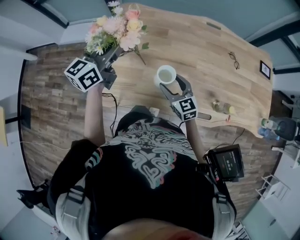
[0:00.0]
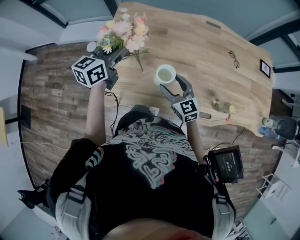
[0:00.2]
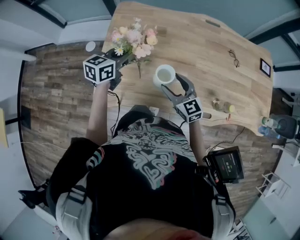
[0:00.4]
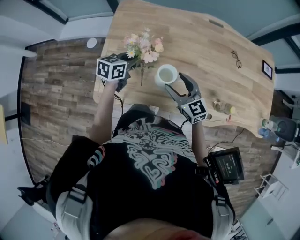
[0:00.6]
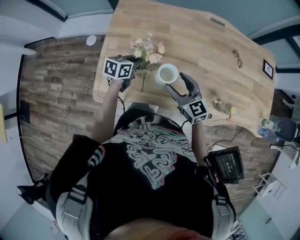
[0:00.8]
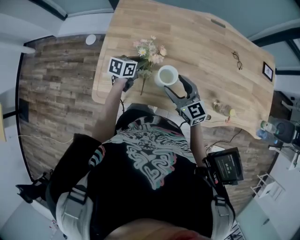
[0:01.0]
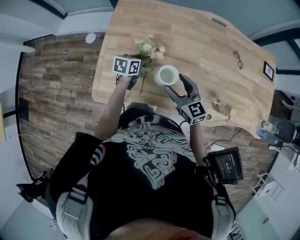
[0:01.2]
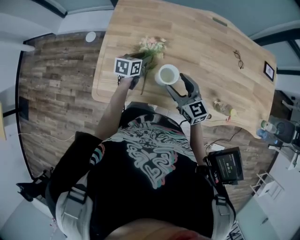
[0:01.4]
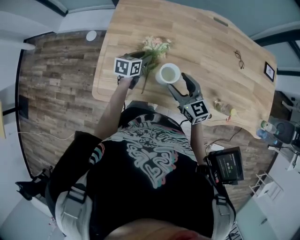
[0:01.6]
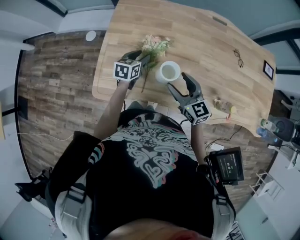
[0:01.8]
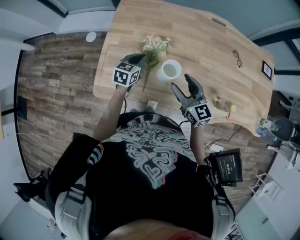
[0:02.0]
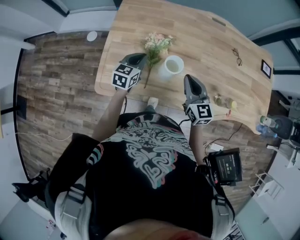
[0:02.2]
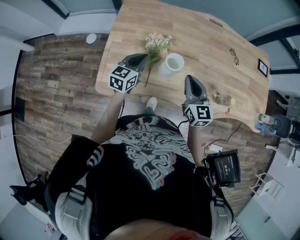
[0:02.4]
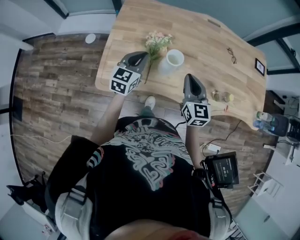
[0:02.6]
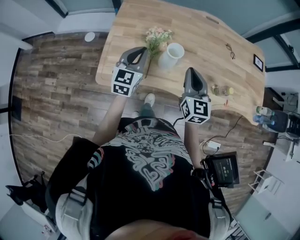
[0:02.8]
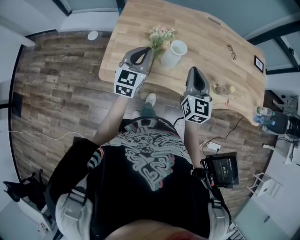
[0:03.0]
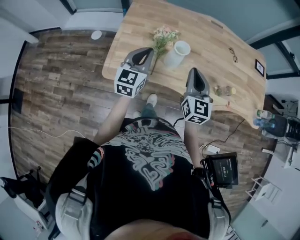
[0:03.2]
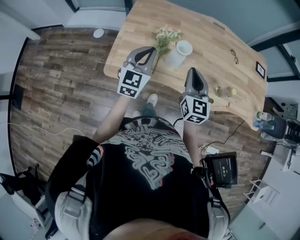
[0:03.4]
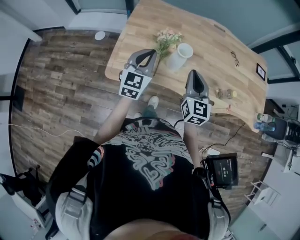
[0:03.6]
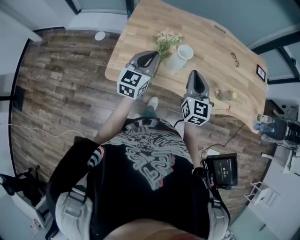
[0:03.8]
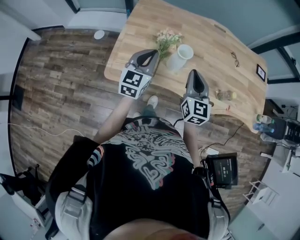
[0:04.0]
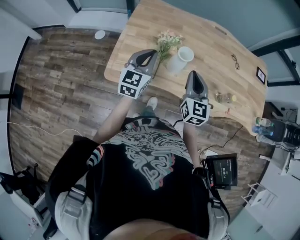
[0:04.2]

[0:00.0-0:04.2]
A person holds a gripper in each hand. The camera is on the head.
0:00.0 to 0:01.4: The left gripper goes about 25 cm downward, and angles its fingers downward, by about 40 degrees.
0:01.4 to 0:02.8: The right gripper shifts approximately 15 cm upward and backward, changes its angle by roughly 30 degrees, and closes up, while the left gripper goes about 25 cm upward and backward, and turns by some 40 degrees.

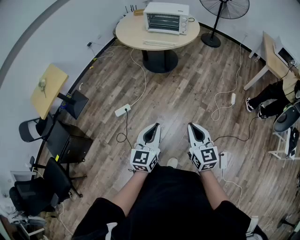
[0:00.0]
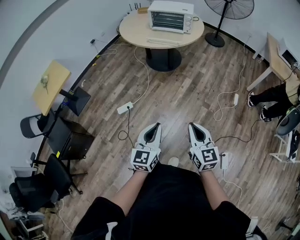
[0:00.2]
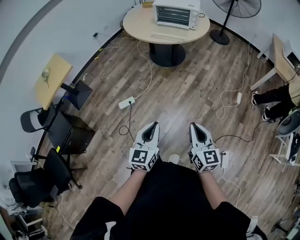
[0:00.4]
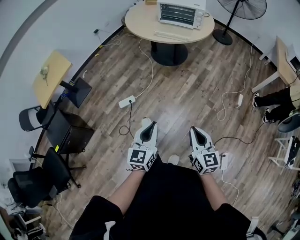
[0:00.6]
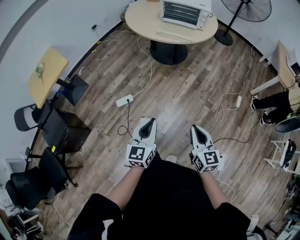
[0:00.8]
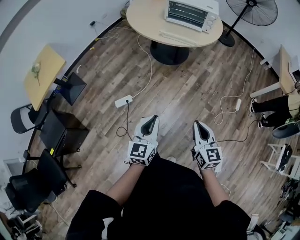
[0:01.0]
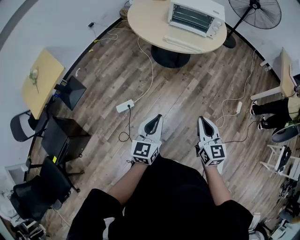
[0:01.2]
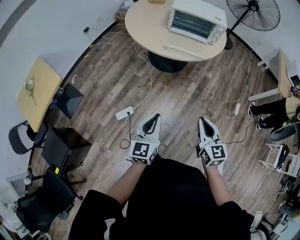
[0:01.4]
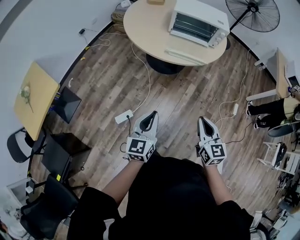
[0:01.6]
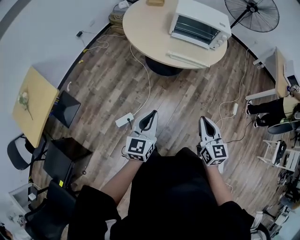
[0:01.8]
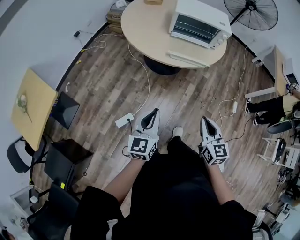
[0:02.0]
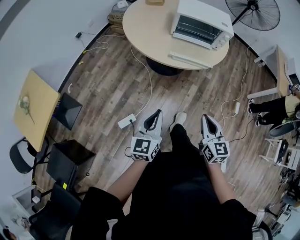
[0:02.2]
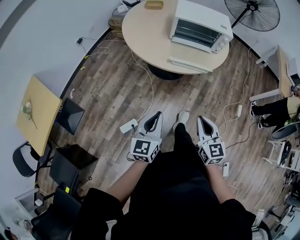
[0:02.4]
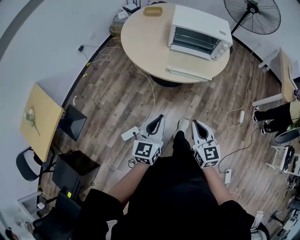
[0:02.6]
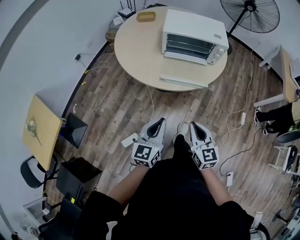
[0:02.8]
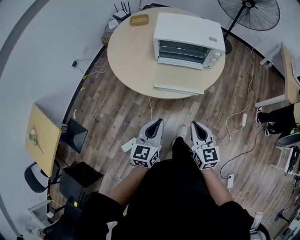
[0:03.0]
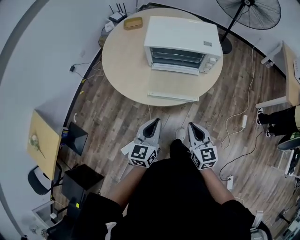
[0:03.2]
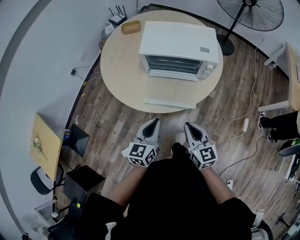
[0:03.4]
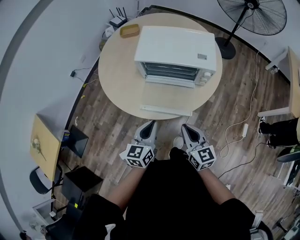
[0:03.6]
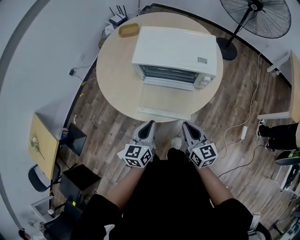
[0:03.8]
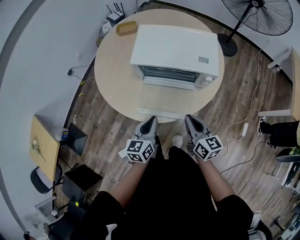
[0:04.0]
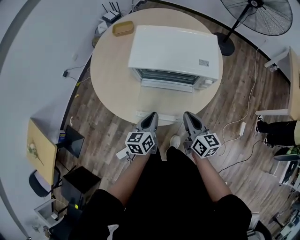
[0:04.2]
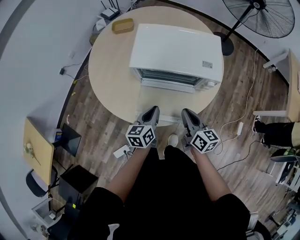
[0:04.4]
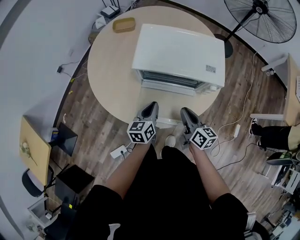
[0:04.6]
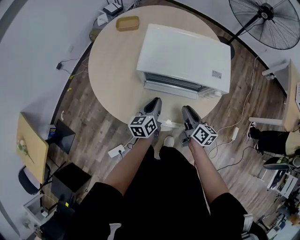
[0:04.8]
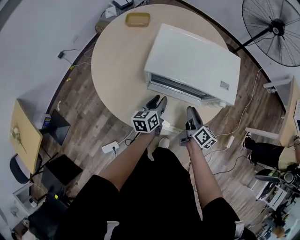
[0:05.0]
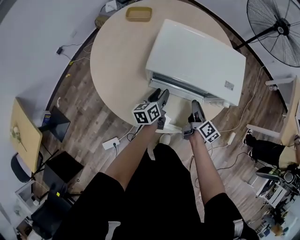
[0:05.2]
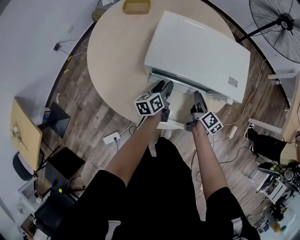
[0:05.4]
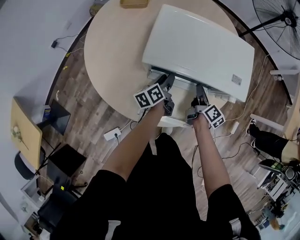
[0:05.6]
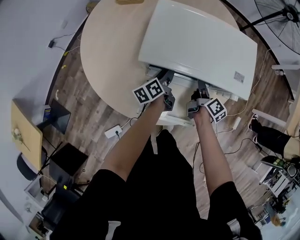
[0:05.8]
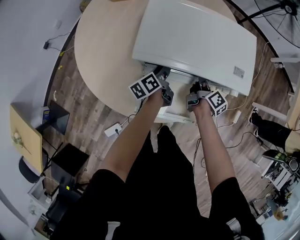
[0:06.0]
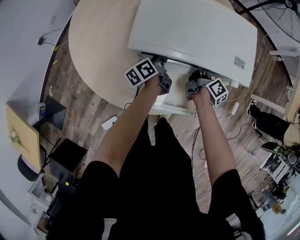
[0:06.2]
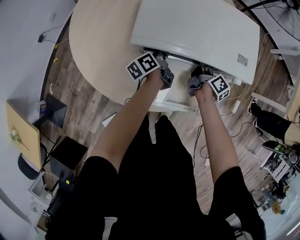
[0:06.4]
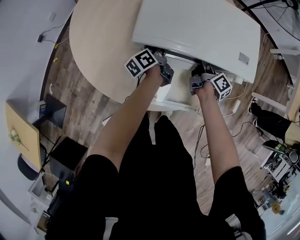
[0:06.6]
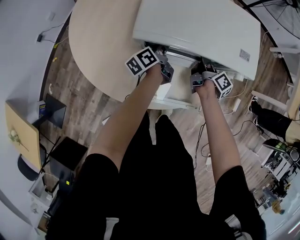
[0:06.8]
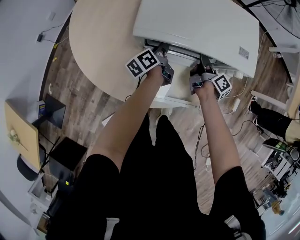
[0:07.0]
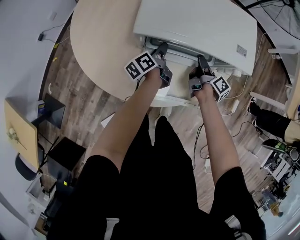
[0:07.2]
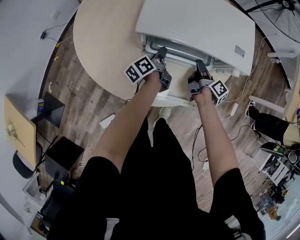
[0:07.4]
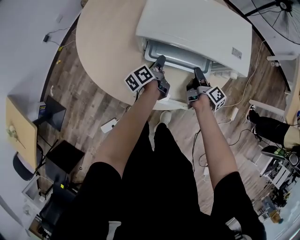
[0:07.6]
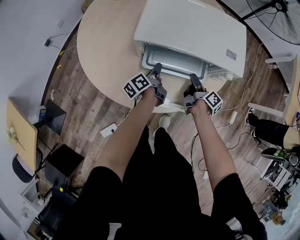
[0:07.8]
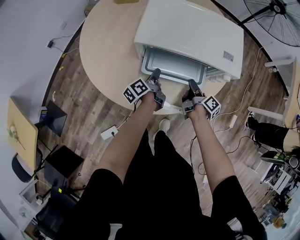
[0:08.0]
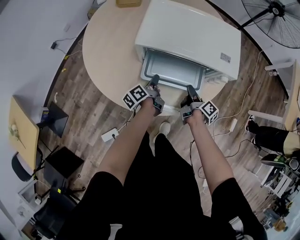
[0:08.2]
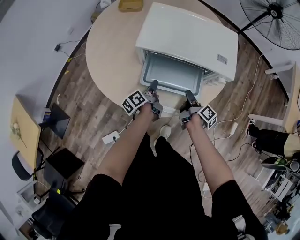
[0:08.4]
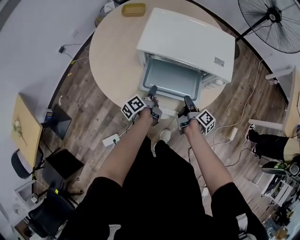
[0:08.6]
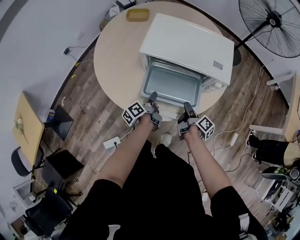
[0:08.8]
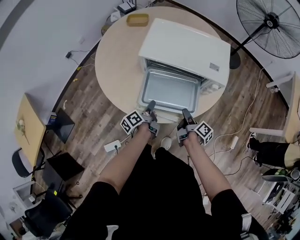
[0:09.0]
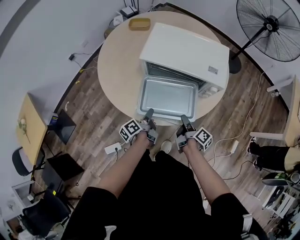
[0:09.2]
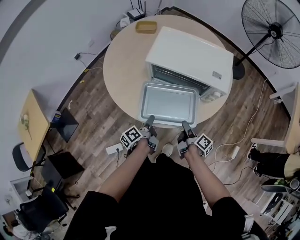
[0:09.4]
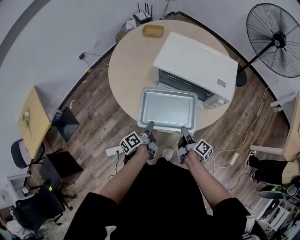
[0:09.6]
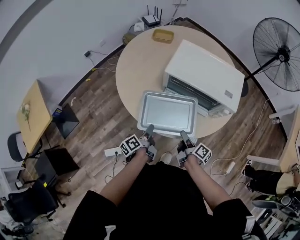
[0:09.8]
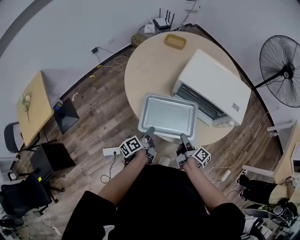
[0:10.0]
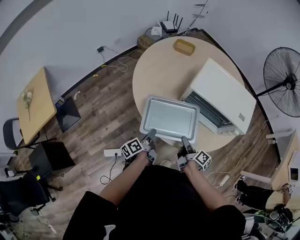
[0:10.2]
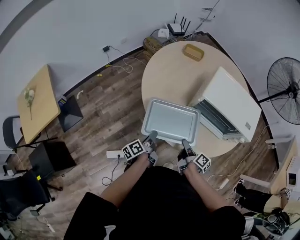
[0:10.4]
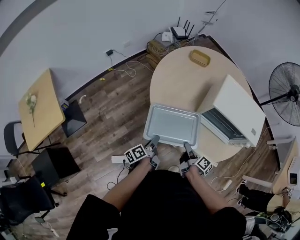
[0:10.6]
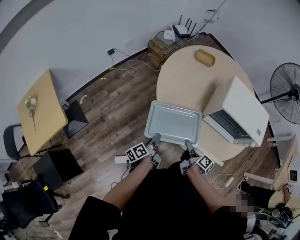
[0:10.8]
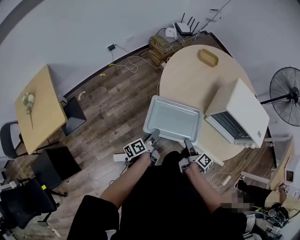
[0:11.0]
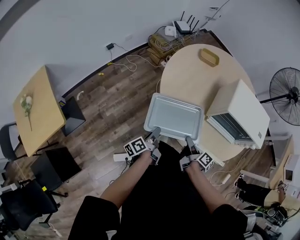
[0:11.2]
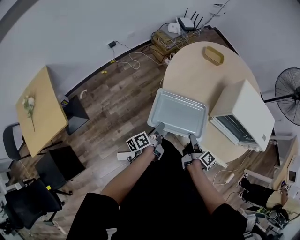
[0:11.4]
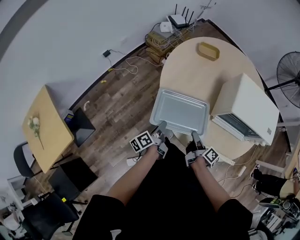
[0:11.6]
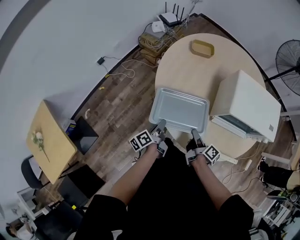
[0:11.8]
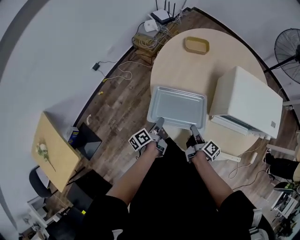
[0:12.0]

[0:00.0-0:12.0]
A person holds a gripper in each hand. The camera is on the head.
0:00.0 to 0:01.6: The two grippers travel together, forward and to the left, roughly 40 cm.
0:01.6 to 0:03.0: The grippers both shift forward by about 25 cm.
0:03.0 to 0:04.4: Both grippers travel together forward, roughly 30 cm. The right gripper rotates about 30 degrees, while the left gripper turns by approximately 20 degrees.
0:04.4 to 0:06.0: The grippers both shift forward and downward by roughly 25 cm. The left gripper changes its angle by about 40 degrees, and opens up; the right gripper rotates about 40 degrees, and opens.
0:06.0 to 0:07.6: The grippers both shift backward by about 5 cm.
0:07.6 to 0:09.0: The two grippers go roughly 15 cm backward.
0:09.0 to 0:10.4: Both grippers move to the left, approximately 25 cm. The right gripper rotates some 20 degrees.
0:10.4 to 0:12.0: The two grippers go approximately 25 cm forward and to the left.

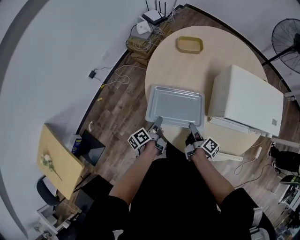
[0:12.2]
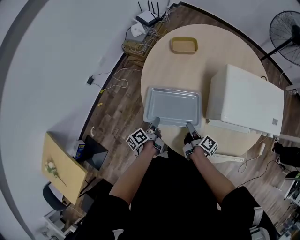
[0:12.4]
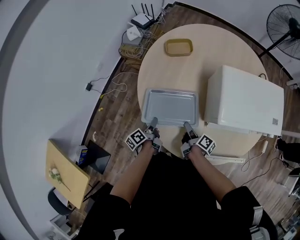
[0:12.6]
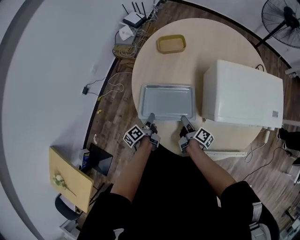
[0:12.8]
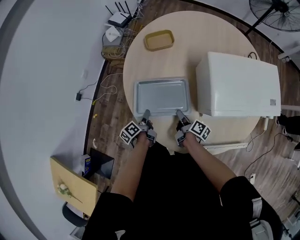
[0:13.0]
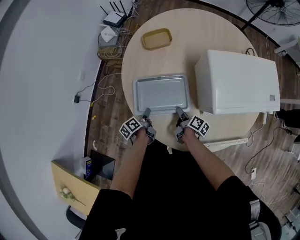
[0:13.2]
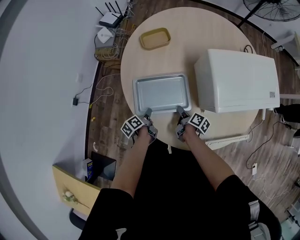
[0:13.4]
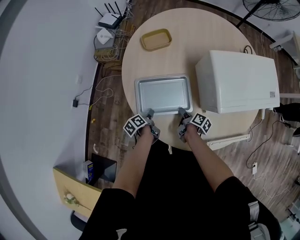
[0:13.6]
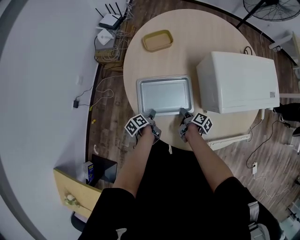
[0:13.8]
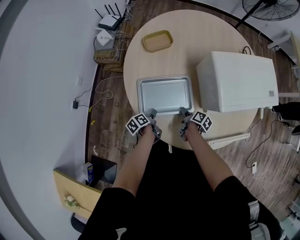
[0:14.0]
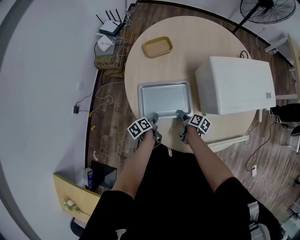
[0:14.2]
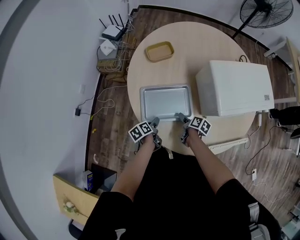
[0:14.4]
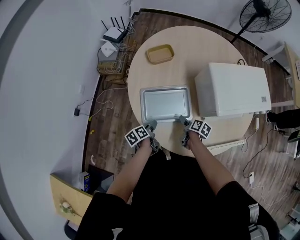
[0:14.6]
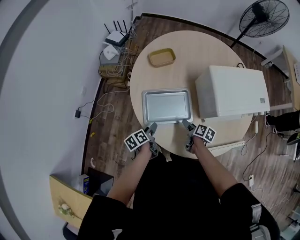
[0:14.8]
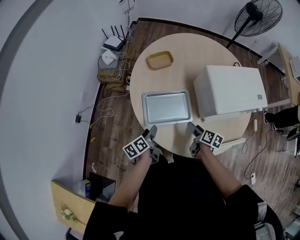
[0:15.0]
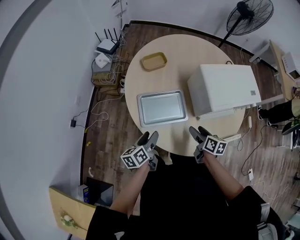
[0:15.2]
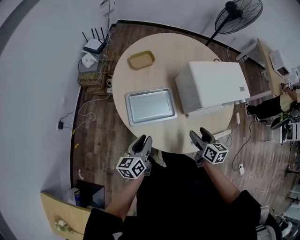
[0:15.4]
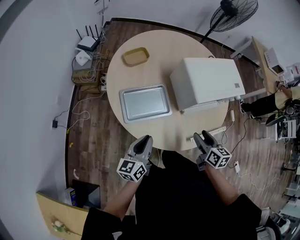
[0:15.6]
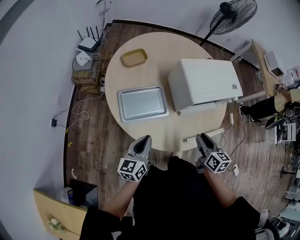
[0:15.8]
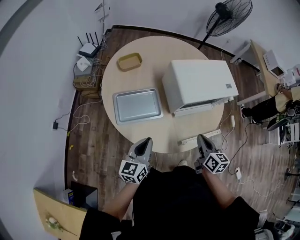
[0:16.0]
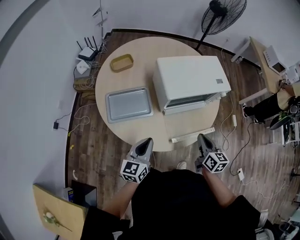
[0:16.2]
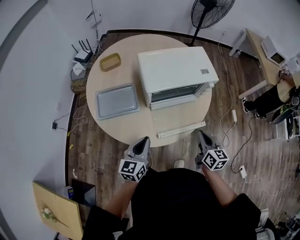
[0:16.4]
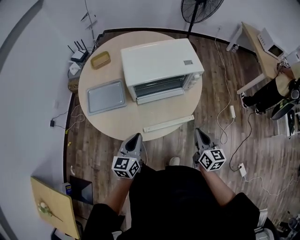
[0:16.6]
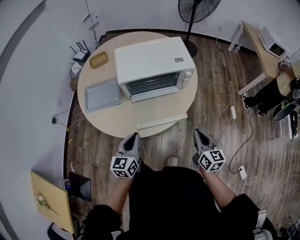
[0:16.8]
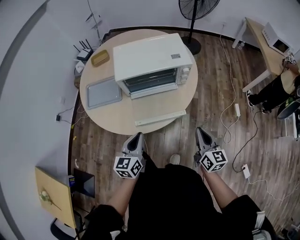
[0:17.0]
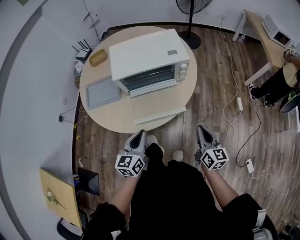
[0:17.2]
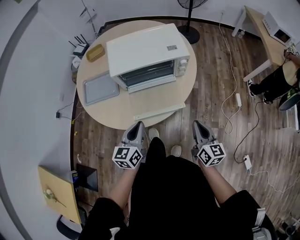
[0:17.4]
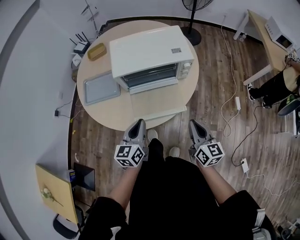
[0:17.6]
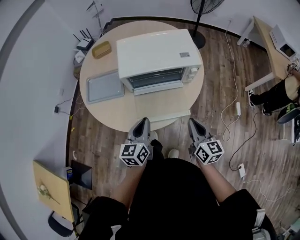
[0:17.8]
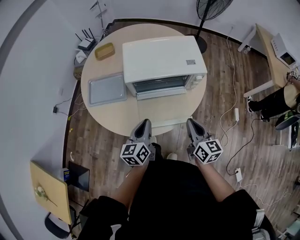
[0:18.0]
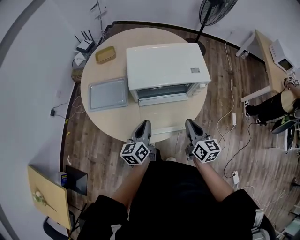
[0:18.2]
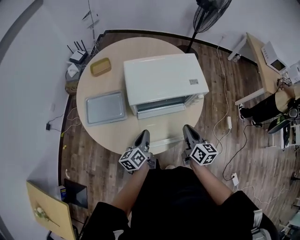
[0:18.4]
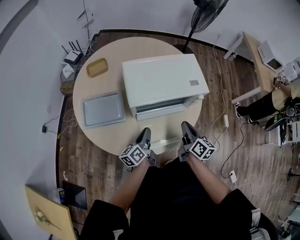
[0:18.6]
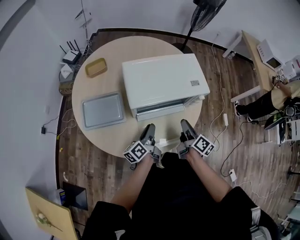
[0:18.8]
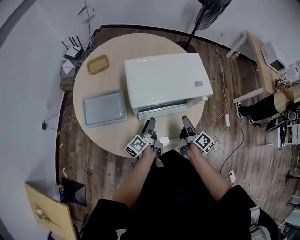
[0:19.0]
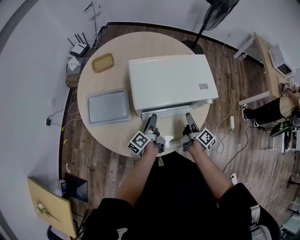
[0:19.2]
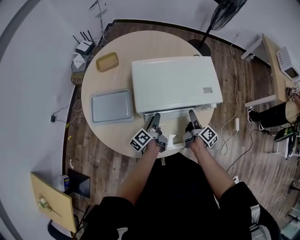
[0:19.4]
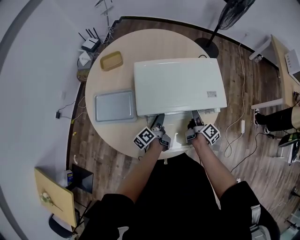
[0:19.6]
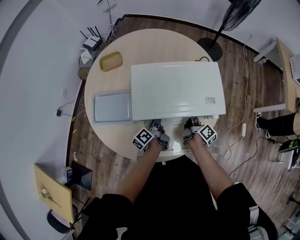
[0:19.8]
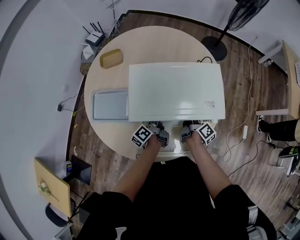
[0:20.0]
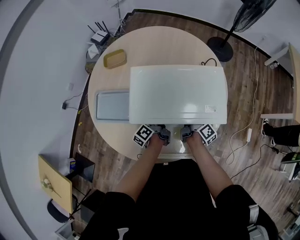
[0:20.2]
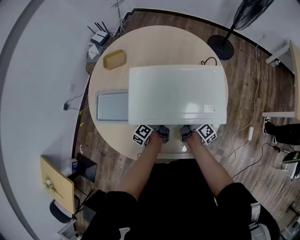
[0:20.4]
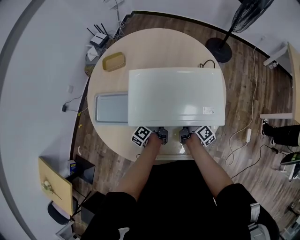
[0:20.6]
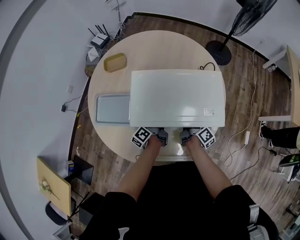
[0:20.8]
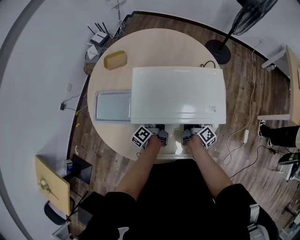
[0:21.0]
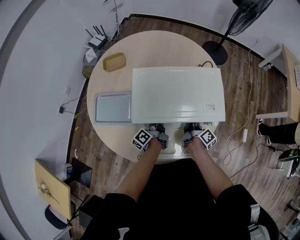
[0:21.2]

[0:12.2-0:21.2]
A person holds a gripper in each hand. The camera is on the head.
0:12.2 to 0:13.8: The left gripper shifts approximately 15 cm forward and downward, and changes its angle by some 30 degrees. The right gripper goes approximately 15 cm downward and forward, and changes its angle by roughly 30 degrees.
0:13.8 to 0:15.2: The grippers both shift upward by approximately 20 cm. The right gripper rolls counterclockwise, seen from behind, by approximately 40 degrees, and opens its fingers. Meanwhile the left gripper rotates about 40 degrees, and opens its fingers.
0:15.2 to 0:16.6: The grippers both shift to the right by roughly 40 cm. The left gripper swivels roughly 40 degrees, and closes up, while the right gripper swivels about 30 degrees, and closes up.
0:16.6 to 0:18.2: Both grippers travel together forward, roughly 10 cm. The left gripper swivels some 20 degrees.
0:18.2 to 0:19.8: The two grippers go approximately 25 cm forward and downward. The left gripper rotates around the line of its fingers by some 40 degrees, counterclockwise from behind, and opens up, while the right gripper twists about 50 degrees clockwise, seen from behind, and opens up.
0:19.8 to 0:21.2: The left gripper closes its fingers; the right gripper closes its fingers.
